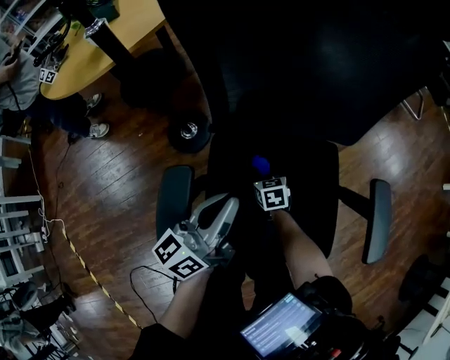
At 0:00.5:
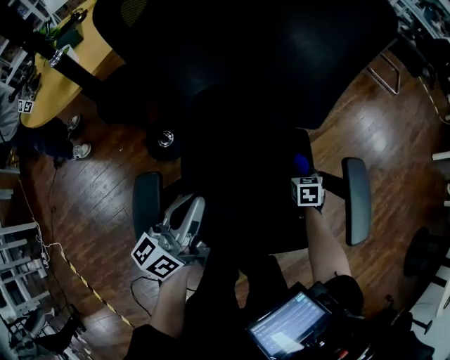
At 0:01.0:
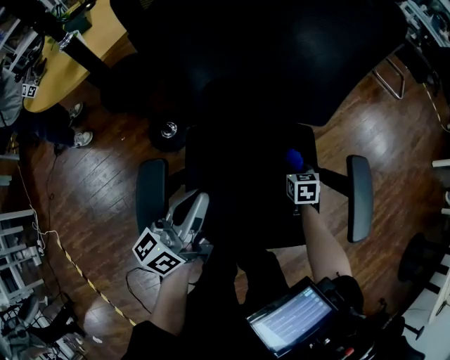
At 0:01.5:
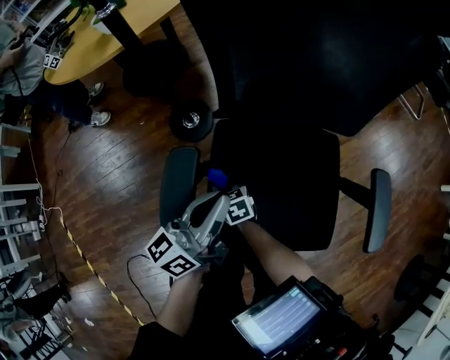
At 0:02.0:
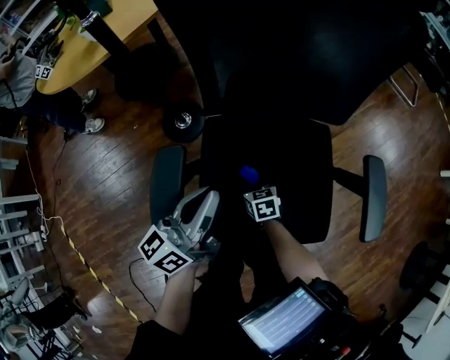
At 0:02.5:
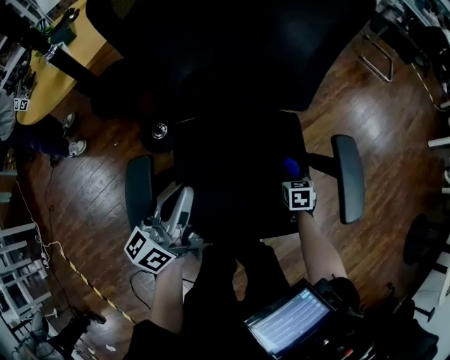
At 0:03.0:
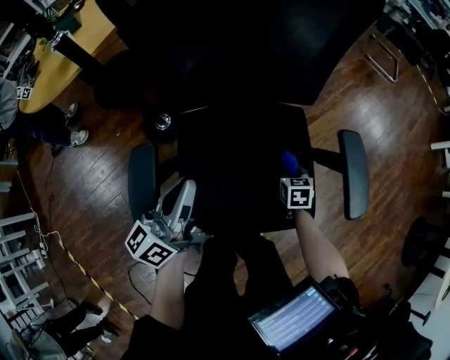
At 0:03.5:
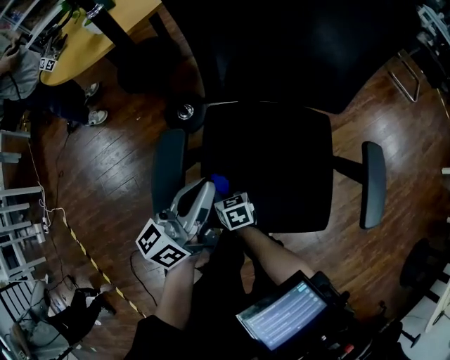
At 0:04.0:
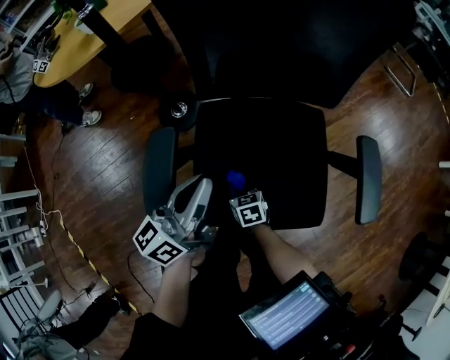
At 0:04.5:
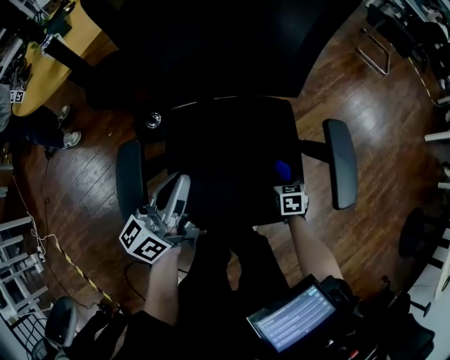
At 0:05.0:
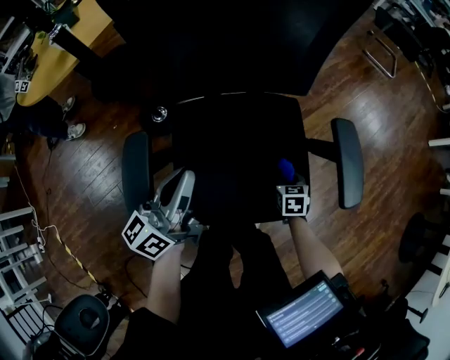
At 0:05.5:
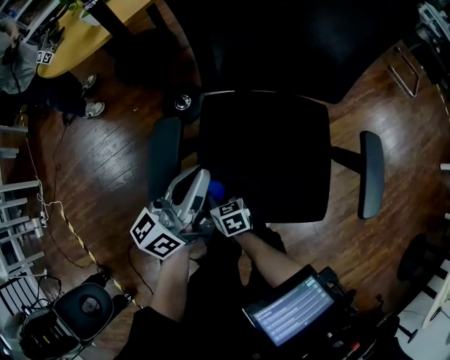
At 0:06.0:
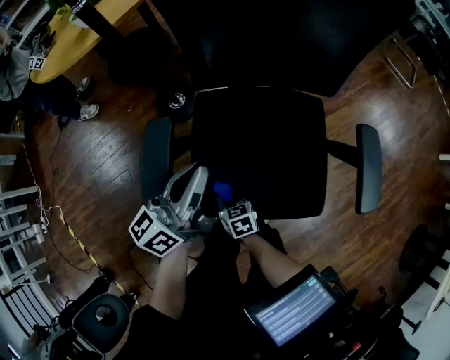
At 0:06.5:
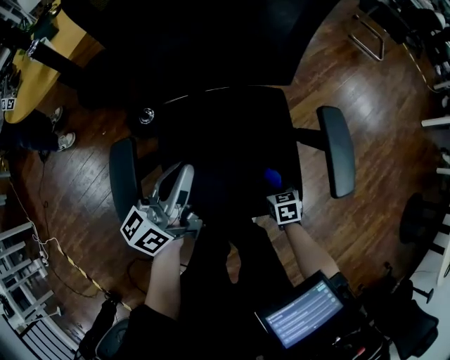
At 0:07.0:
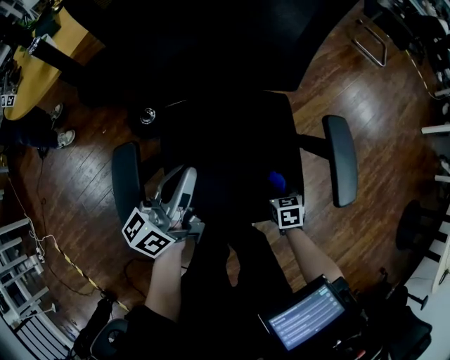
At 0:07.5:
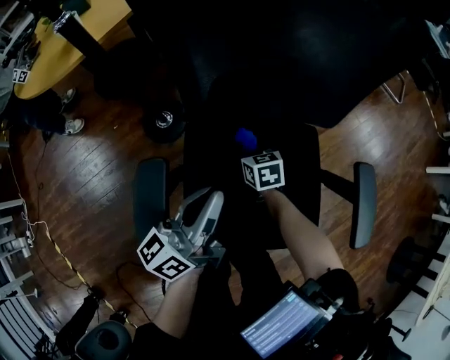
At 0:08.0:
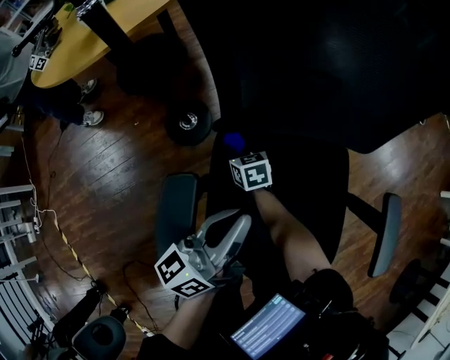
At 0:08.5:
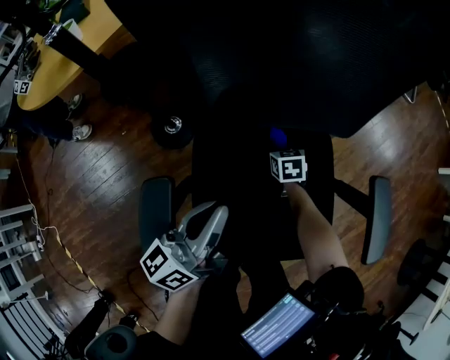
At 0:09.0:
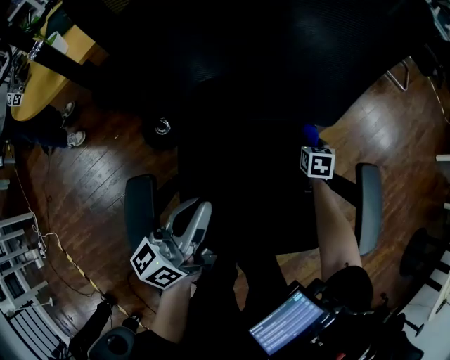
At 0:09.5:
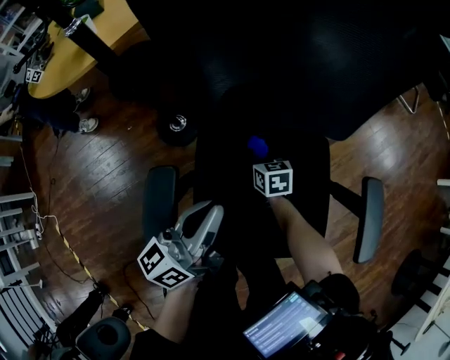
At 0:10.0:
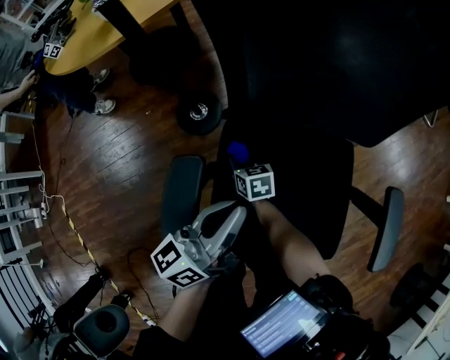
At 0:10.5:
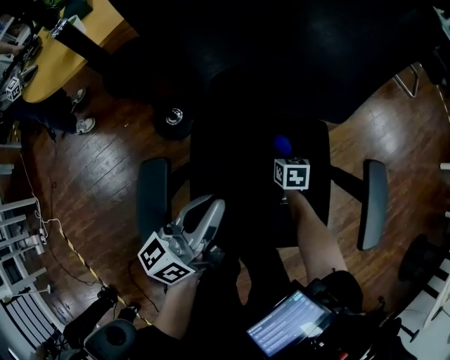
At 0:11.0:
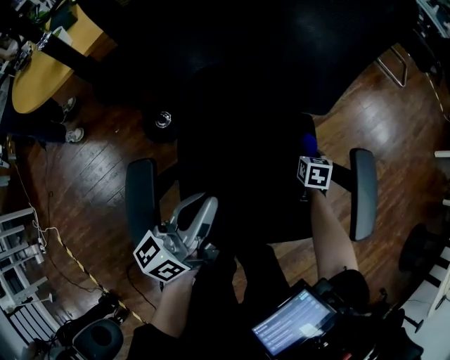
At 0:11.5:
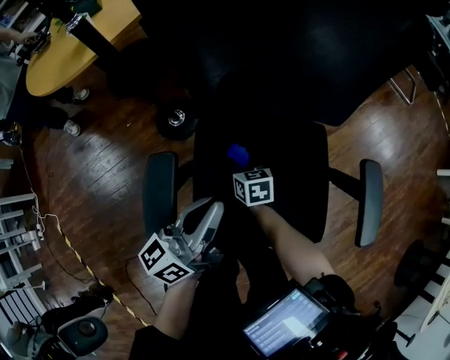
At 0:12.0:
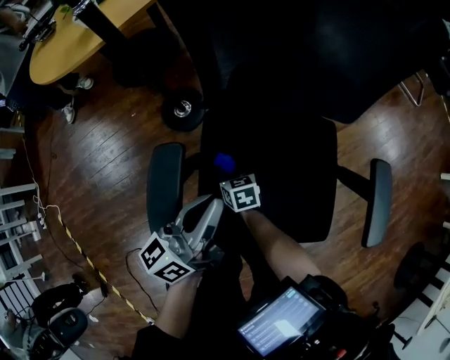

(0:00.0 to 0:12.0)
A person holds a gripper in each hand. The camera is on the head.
0:06.0 - 0:08.0: The right gripper heads forward, covering roughly 30 cm, and moves roughly 30 cm to the right and comes back. Meanwhile the left gripper moves forward, roughly 5 cm.

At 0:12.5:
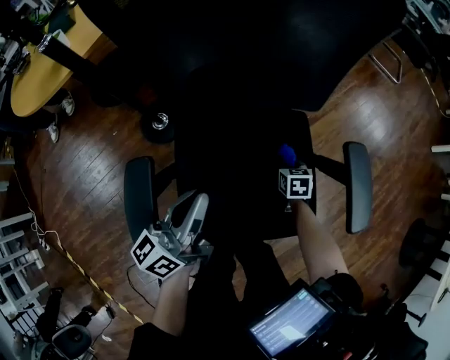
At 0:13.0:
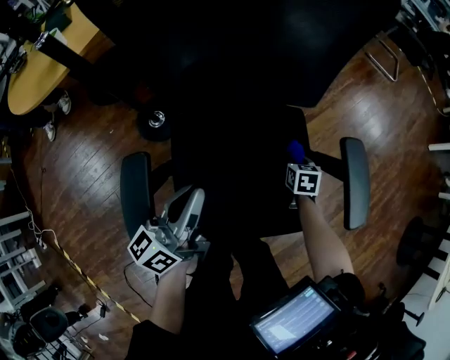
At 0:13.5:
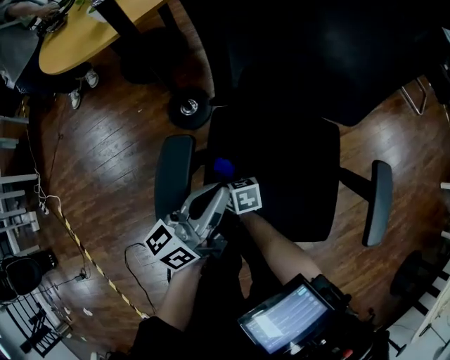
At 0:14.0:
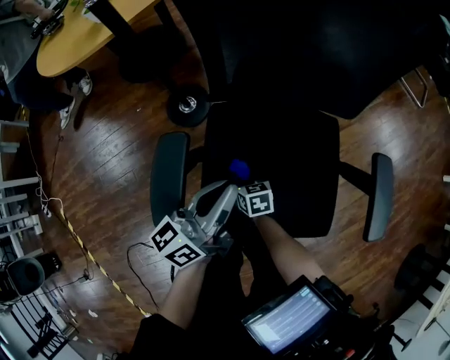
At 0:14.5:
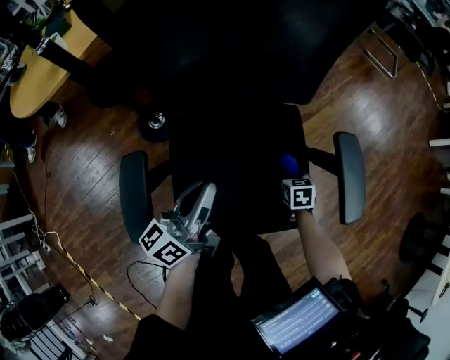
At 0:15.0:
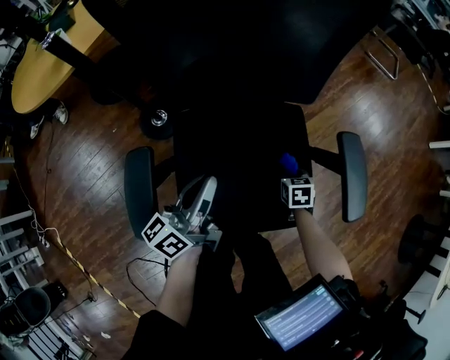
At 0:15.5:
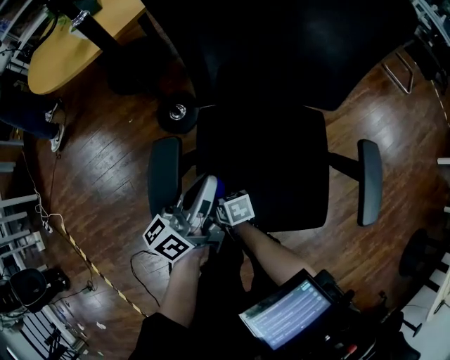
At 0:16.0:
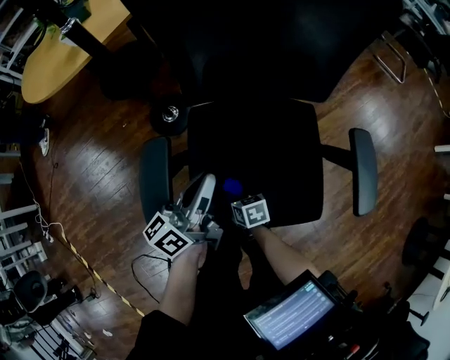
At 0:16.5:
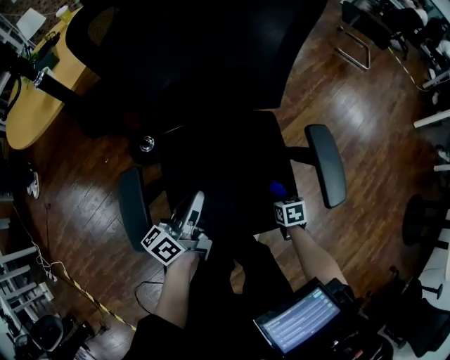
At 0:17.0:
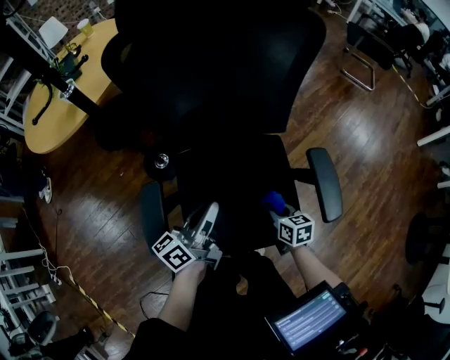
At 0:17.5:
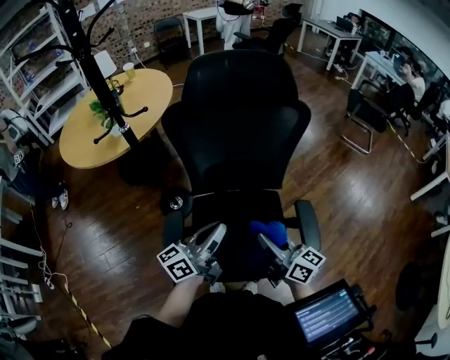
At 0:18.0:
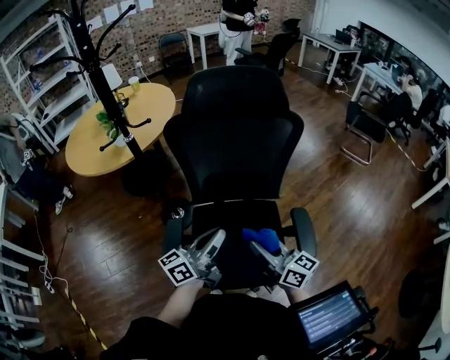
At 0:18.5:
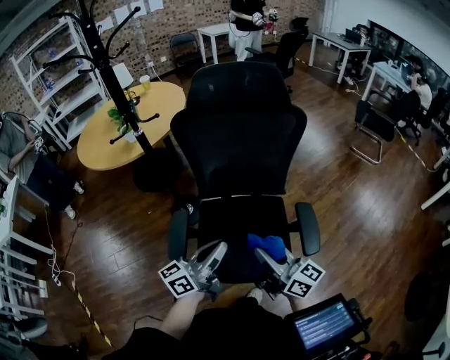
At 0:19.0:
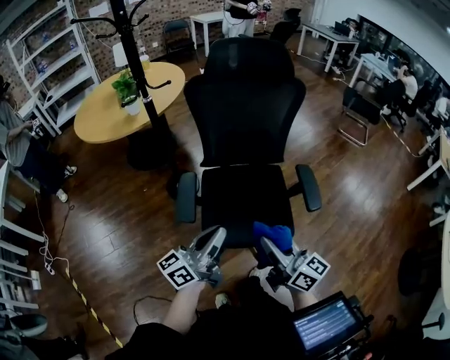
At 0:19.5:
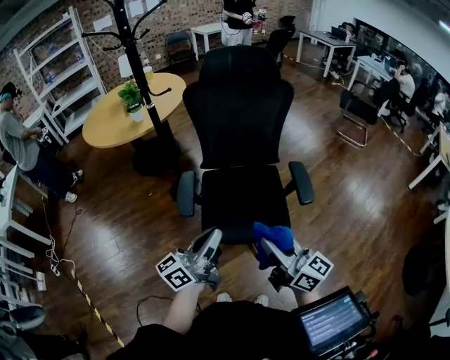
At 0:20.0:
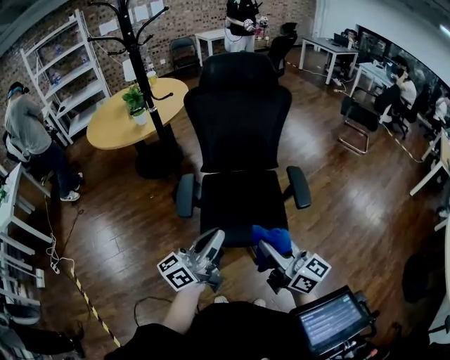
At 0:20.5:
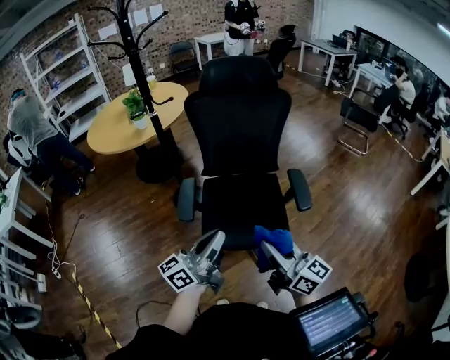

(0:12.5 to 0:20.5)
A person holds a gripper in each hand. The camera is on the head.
0:16.5 - 0:18.5: The left gripper moves upward and backward, approximately 25 cm; the right gripper travels upward by some 50 cm, and points its fingers approximately 70 degrees further upward.
0:18.5 - 0:20.5: Both grippers move backward, roughly 20 cm.

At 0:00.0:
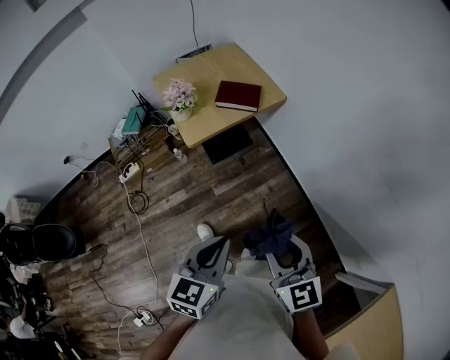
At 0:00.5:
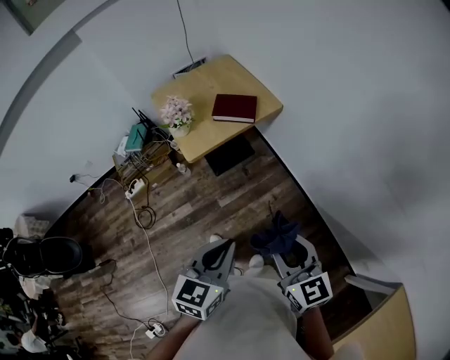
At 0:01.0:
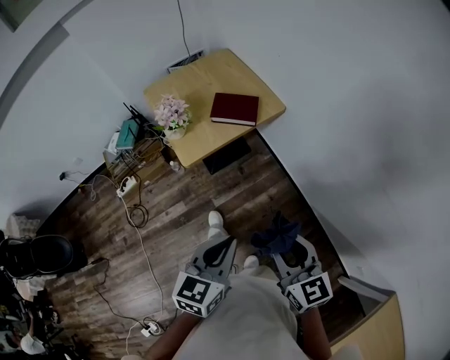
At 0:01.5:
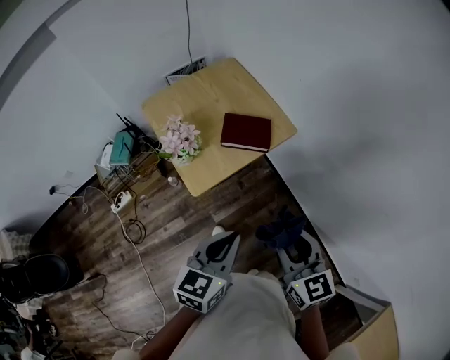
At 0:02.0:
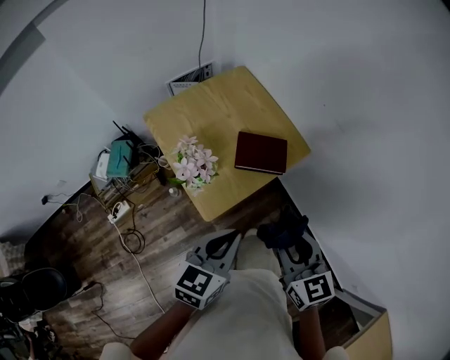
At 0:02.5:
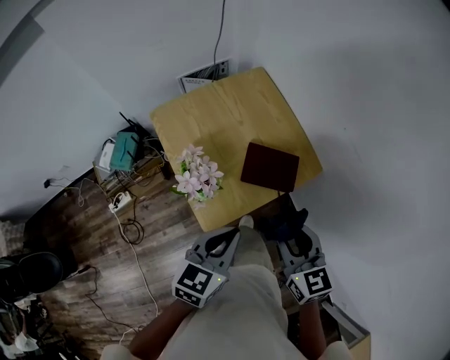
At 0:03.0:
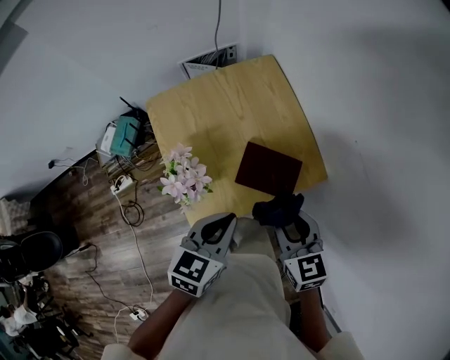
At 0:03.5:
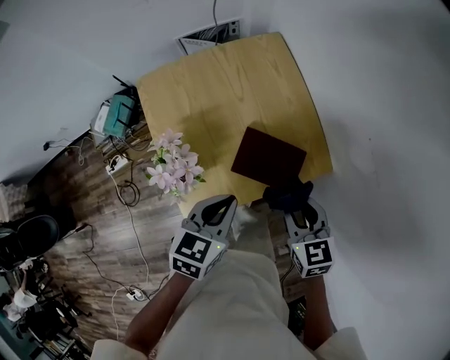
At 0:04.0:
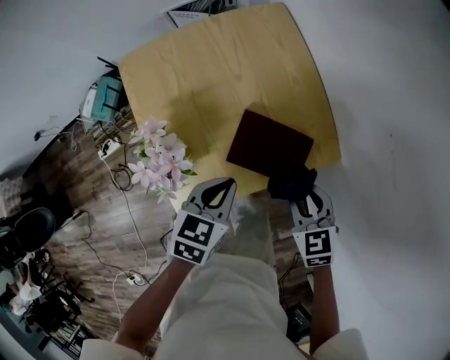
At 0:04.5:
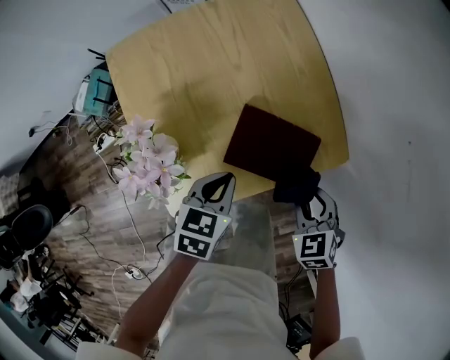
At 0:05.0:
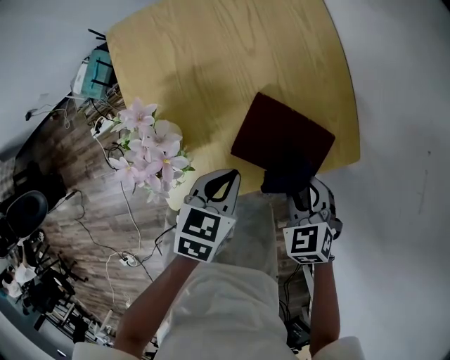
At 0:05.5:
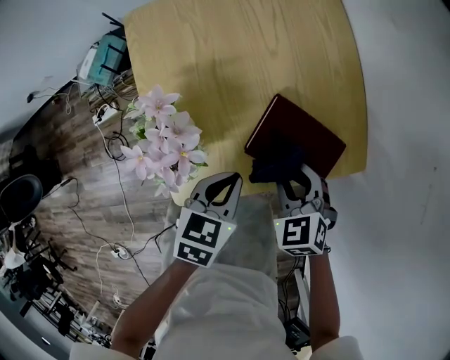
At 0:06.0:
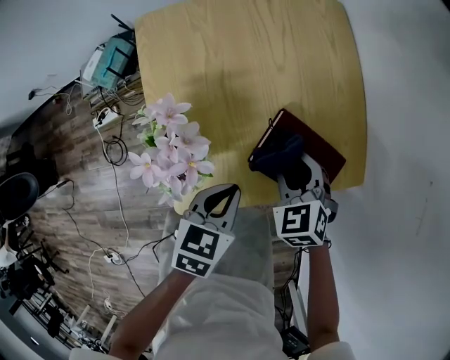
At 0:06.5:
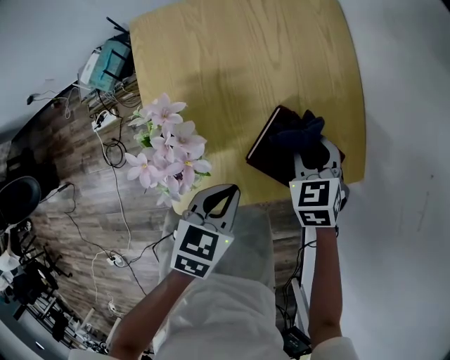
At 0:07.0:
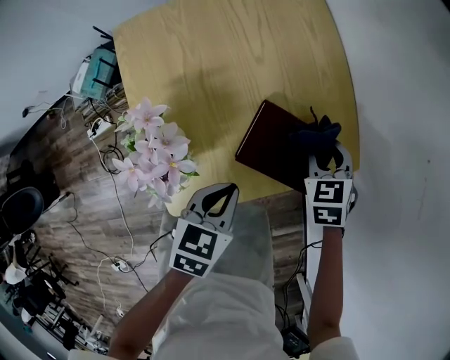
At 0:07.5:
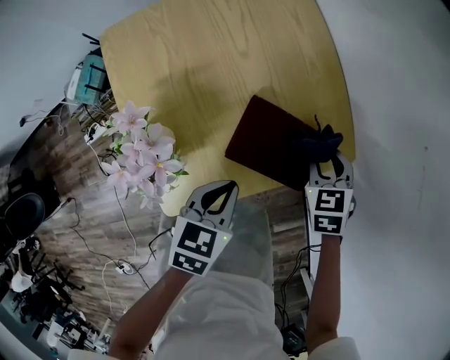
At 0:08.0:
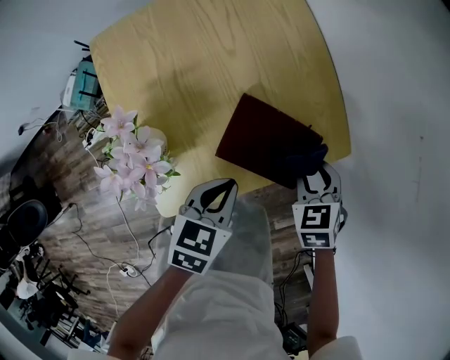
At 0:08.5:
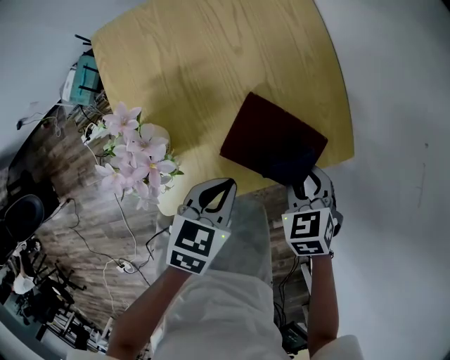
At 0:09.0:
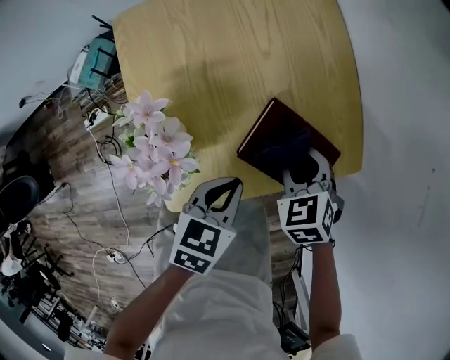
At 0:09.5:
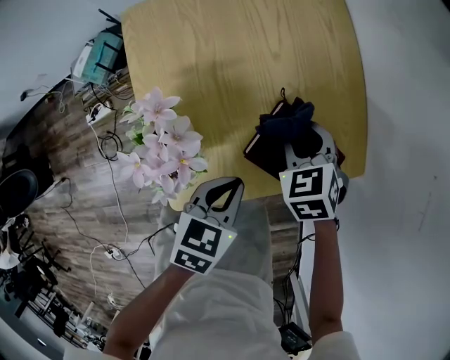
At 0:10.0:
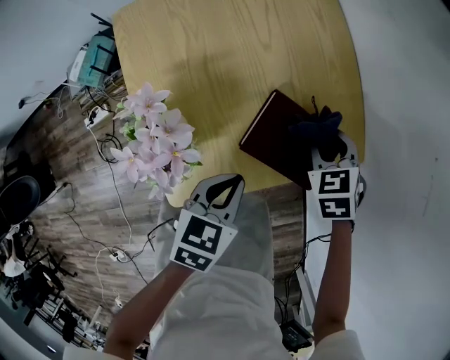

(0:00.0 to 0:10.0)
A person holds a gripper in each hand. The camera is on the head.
0:00.0 - 0:02.0: The grippers both shift forward and to the left by about 40 cm.
0:02.0 - 0:04.0: Both grippers travel together forward and downward, approximately 30 cm. The right gripper turns by about 30 degrees. Meanwhile the left gripper swivels about 30 degrees.
0:04.0 - 0:06.0: The right gripper heads to the left, downward and forward, covering some 15 cm, and turns by some 20 degrees. The left gripper travels downward by roughly 5 cm.
0:06.0 - 0:08.0: The right gripper is displaced to the right by about 15 cm, and rotates approximately 30 degrees, while the left gripper heads to the right, covering roughly 5 cm.
0:08.0 - 0:10.0: The right gripper is displaced forward and to the left by approximately 10 cm.
